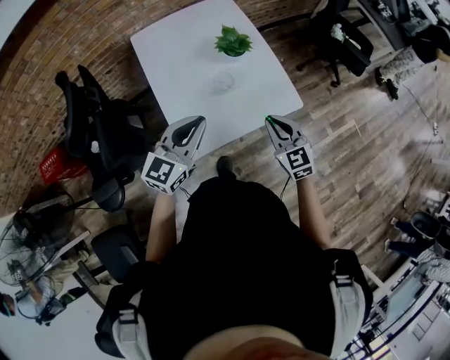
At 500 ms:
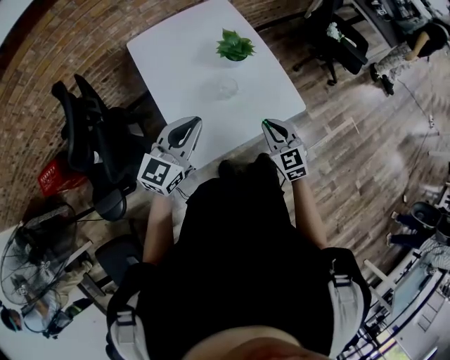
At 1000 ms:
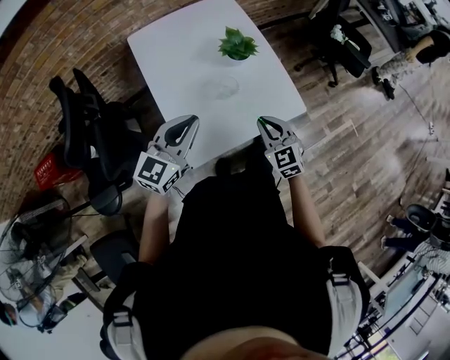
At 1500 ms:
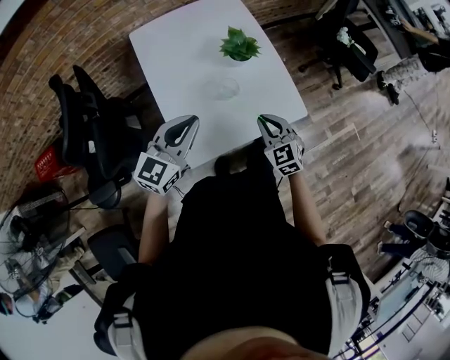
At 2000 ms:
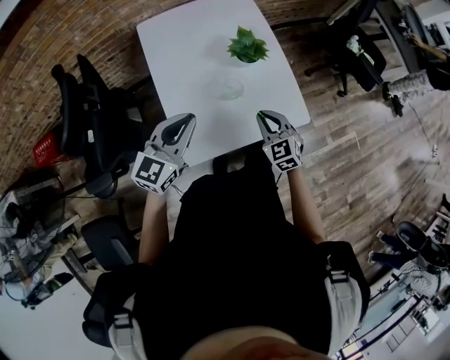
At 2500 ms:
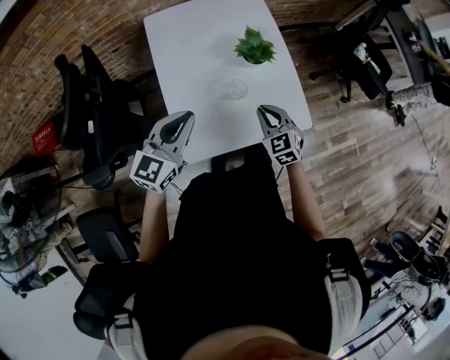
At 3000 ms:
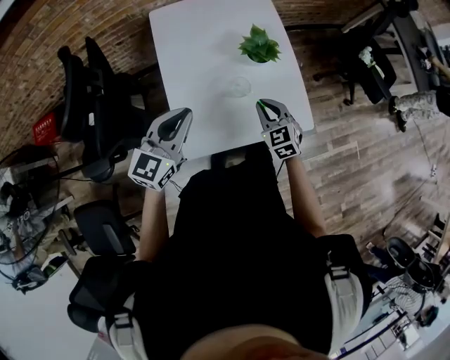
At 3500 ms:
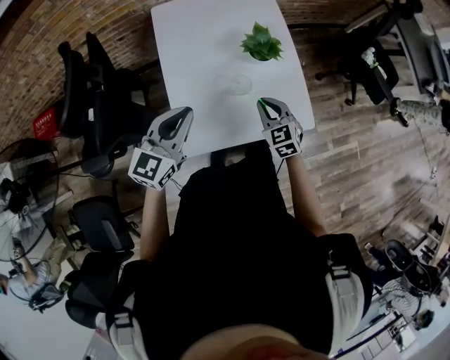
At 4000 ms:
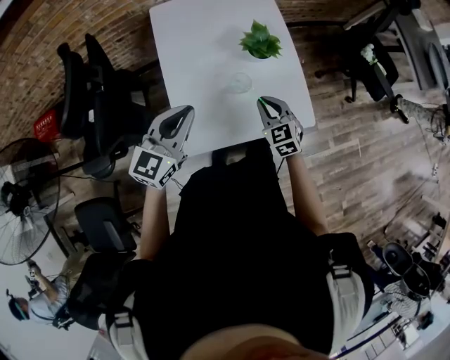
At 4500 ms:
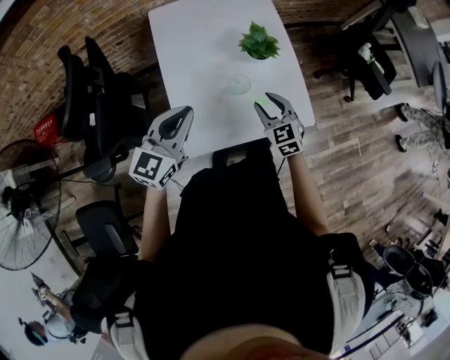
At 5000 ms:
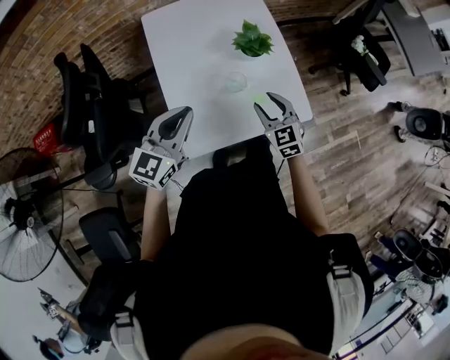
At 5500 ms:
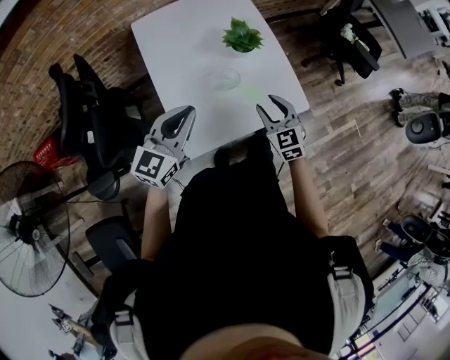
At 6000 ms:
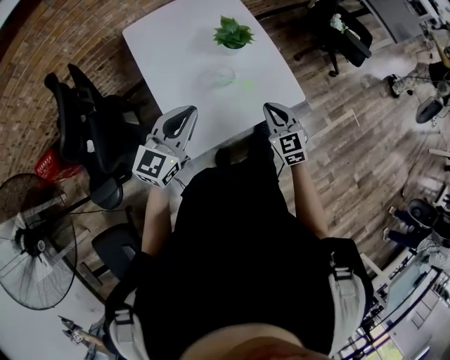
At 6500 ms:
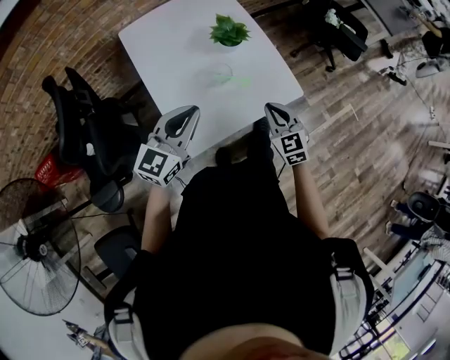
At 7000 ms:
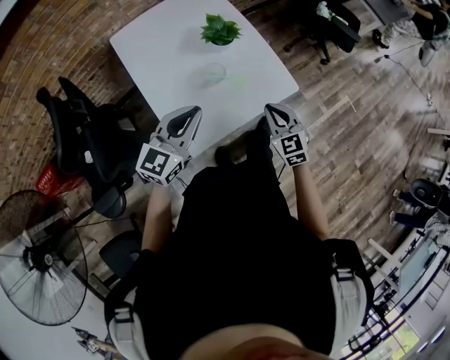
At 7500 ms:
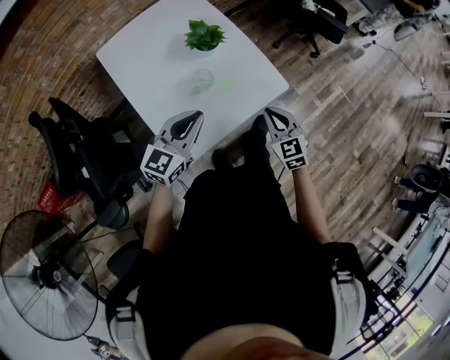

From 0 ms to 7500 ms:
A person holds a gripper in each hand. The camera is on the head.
From 0 ms to 2000 ms: The right gripper travels forward and downward by roughly 10 cm. The left gripper is displaced forward and to the left by roughly 10 cm.
From 2000 ms to 4000 ms: There are only small adjustments of the grippers.
From 4000 ms to 5500 ms: The right gripper moves about 5 cm, and opens up.
From 5500 ms to 7500 ms: The left gripper travels to the right by approximately 5 cm. The right gripper goes some 10 cm to the right and backward, and closes.

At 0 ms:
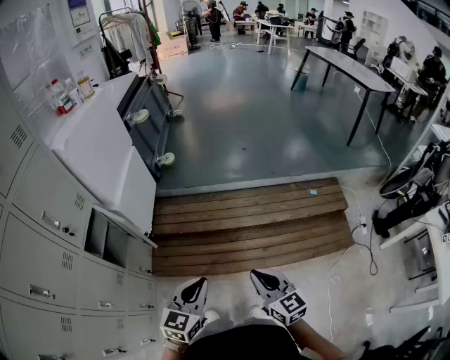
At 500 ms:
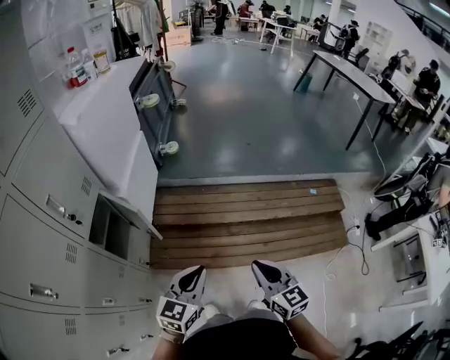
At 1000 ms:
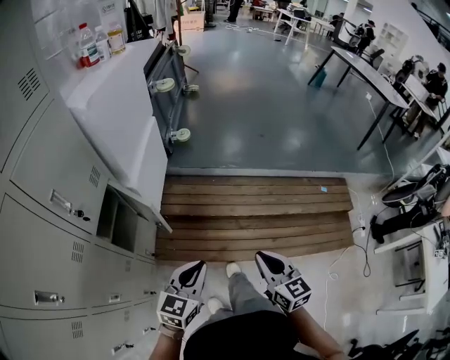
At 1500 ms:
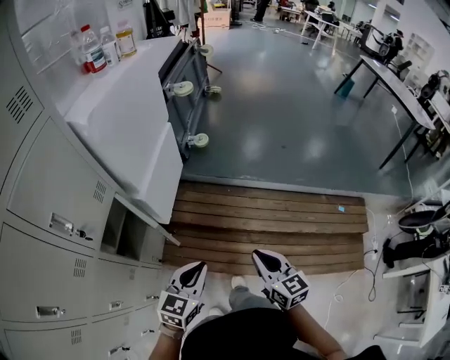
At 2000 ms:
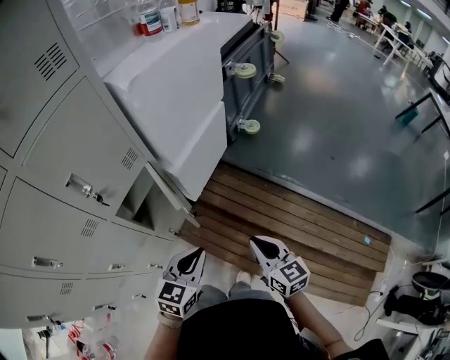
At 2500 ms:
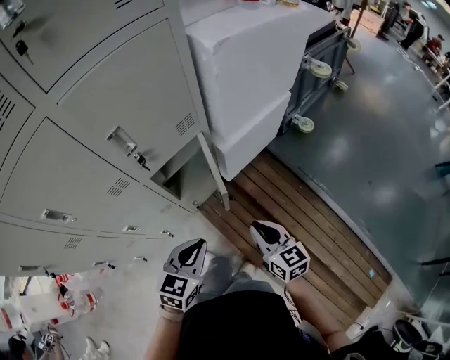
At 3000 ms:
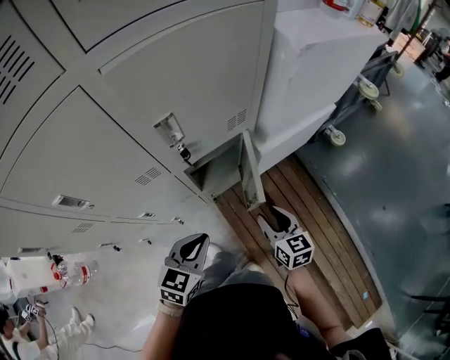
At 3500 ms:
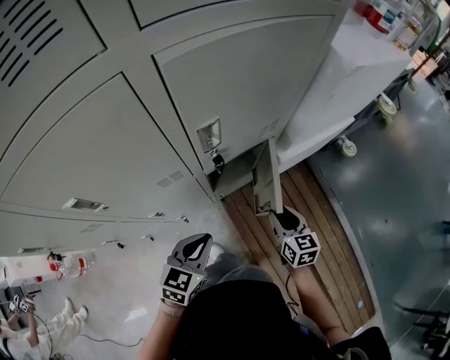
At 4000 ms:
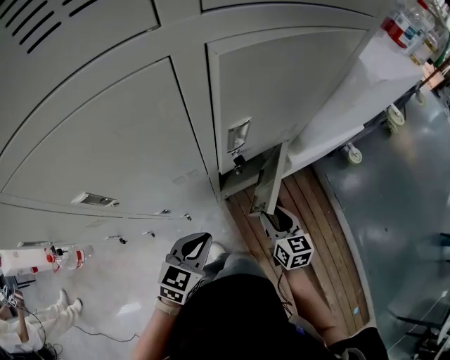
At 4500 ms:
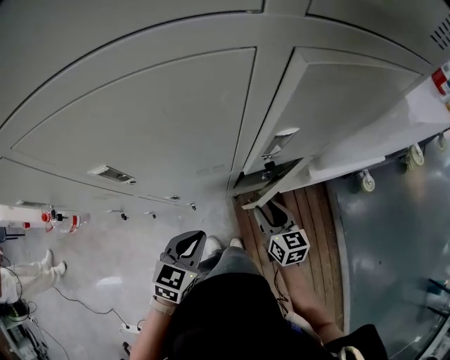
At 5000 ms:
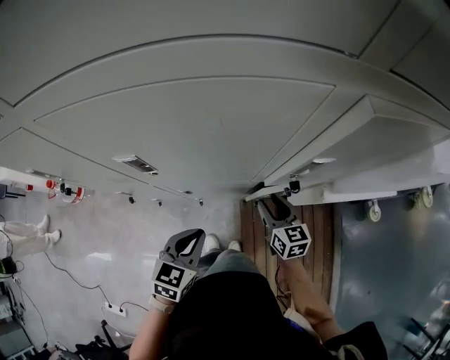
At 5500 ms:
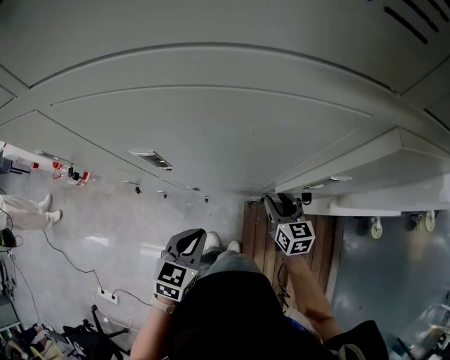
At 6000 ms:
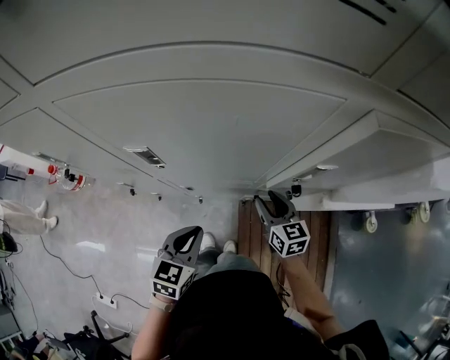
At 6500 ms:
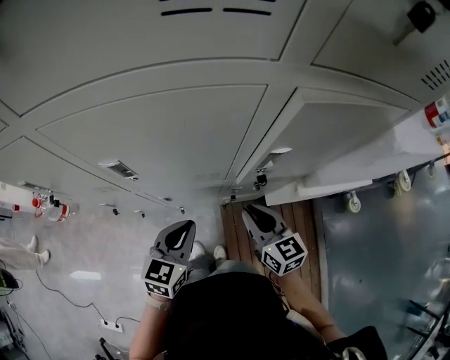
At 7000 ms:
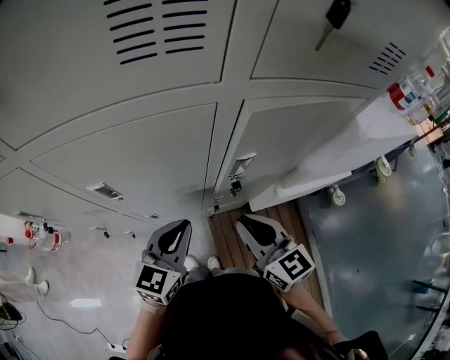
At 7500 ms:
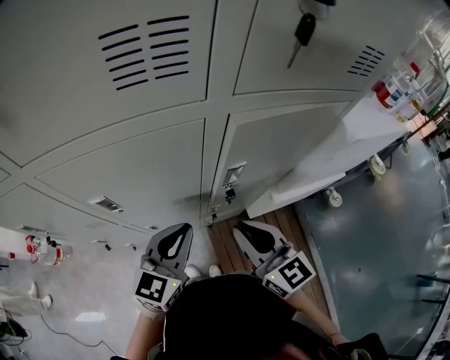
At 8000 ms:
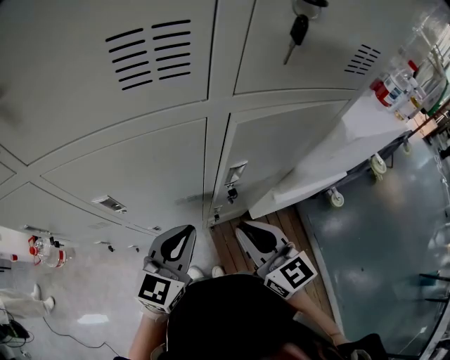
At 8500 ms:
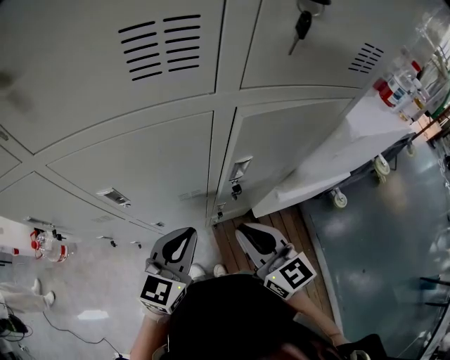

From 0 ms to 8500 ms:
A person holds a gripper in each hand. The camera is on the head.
From 0 ms to 2000 ms: The right gripper moves roughly 35 cm, and changes its angle by about 30 degrees. Meanwhile the left gripper shifts by approximately 30 cm, and swivels about 30 degrees.
From 2000 ms to 4000 ms: The right gripper ends up roughly 35 cm from where it was, changes its angle by approximately 30 degrees, and opens, while the left gripper changes place by approximately 30 cm, and rotates roughly 30 degrees.
From 4000 ms to 6500 ms: The right gripper shifts by about 15 cm, rotates some 30 degrees, and closes up, while the left gripper moves roughly 10 cm, and turns by roughly 30 degrees.
From 6500 ms to 8500 ms: Both grippers travel together upward, roughly 15 cm.

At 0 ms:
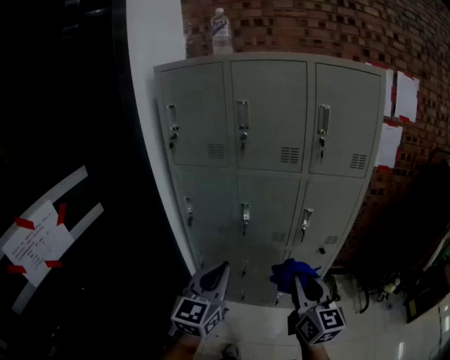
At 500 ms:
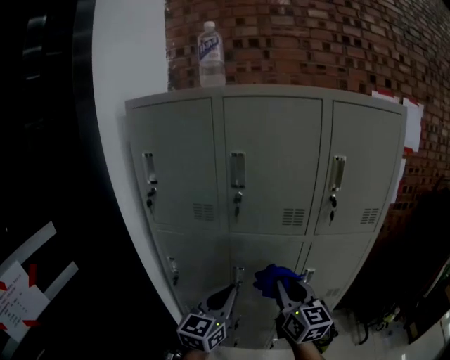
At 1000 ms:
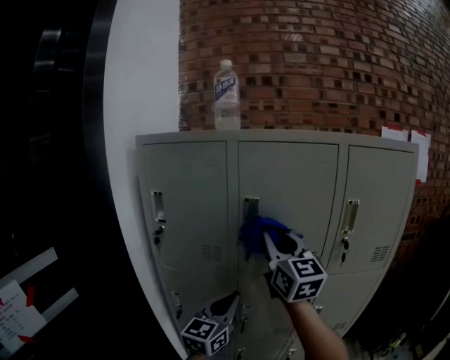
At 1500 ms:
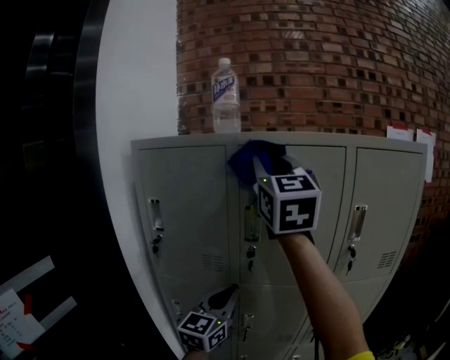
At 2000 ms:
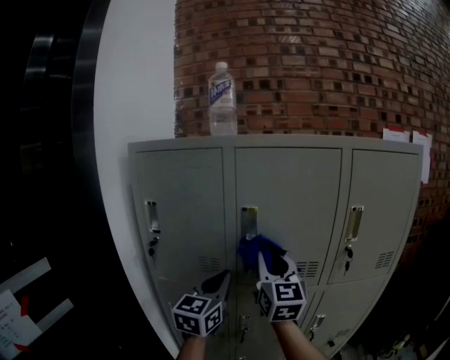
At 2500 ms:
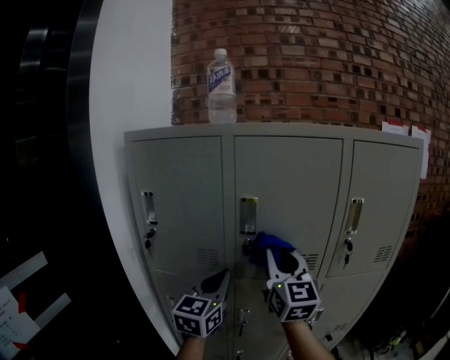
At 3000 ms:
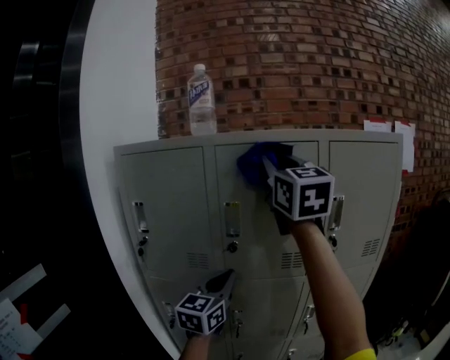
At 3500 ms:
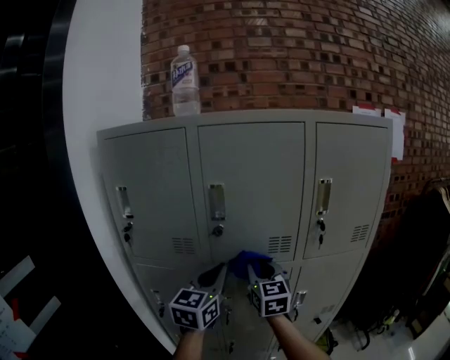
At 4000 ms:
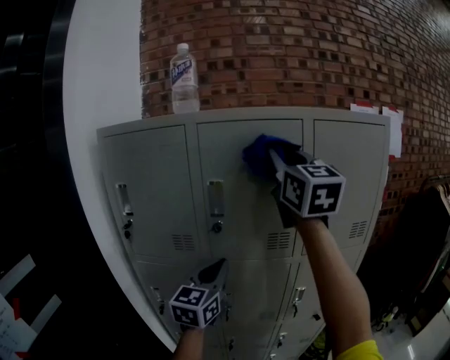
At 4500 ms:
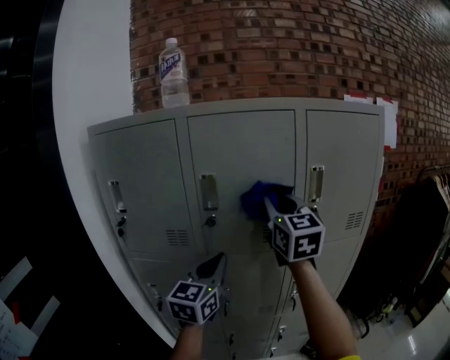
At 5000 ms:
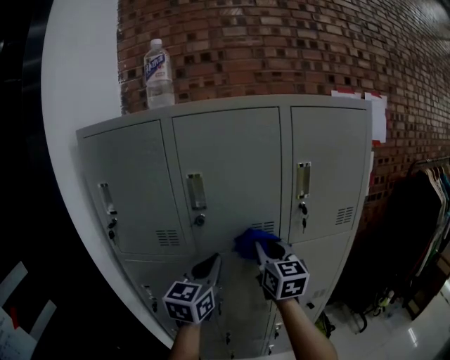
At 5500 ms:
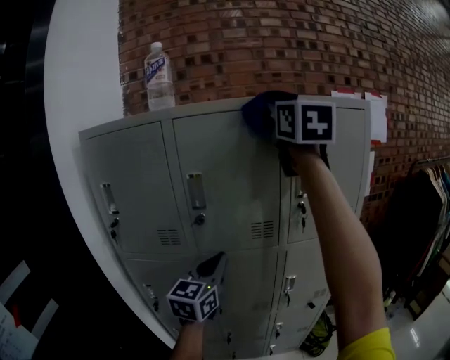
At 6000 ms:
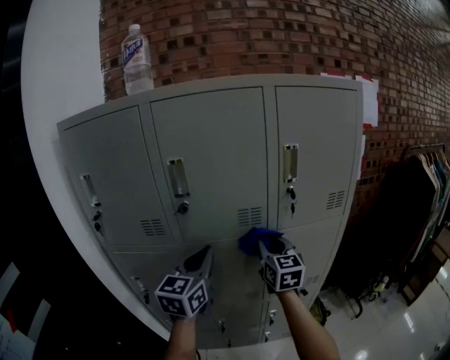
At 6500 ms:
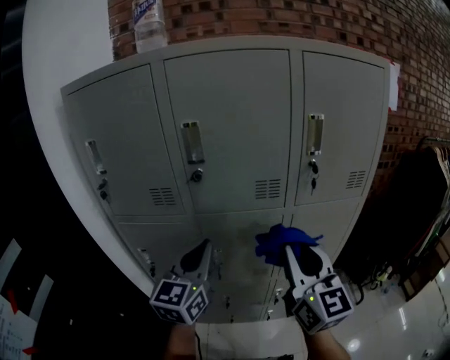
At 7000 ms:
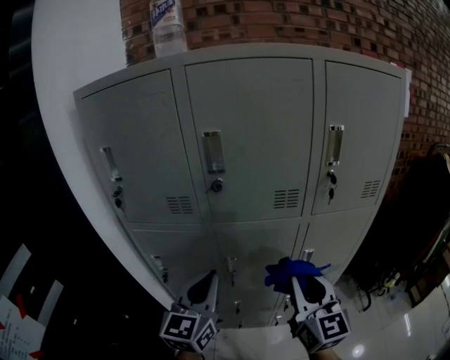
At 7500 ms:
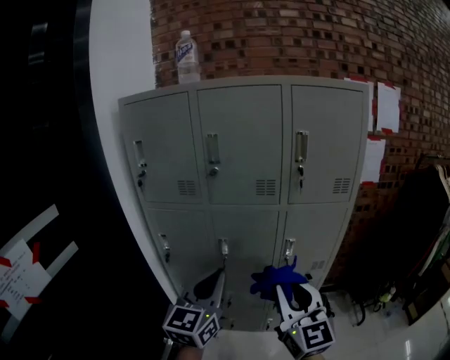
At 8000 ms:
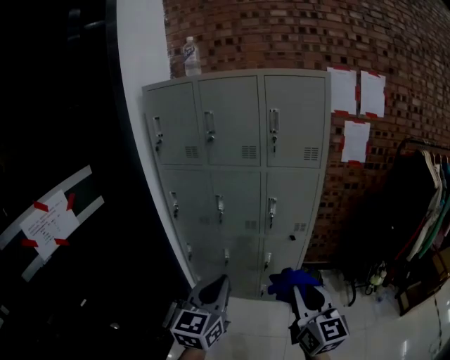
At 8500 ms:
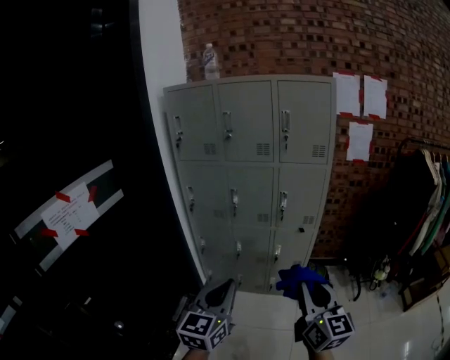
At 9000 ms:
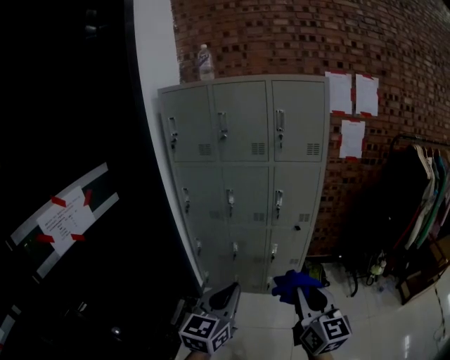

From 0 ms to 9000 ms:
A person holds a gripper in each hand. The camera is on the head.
From 0 ms to 2000 ms: The grippers both shift forward and upward by roughly 40 cm.
From 2000 ms to 4500 ms: The left gripper goes about 5 cm to the right. The right gripper swings up and down, about 35 cm each way, with 3 reversals.
From 4500 ms to 7000 ms: The left gripper heads backward and downward, covering roughly 10 cm. The right gripper goes up and down, some 40 cm each way, reversing 4 times.
From 7000 ms to 9000 ms: The pair of grippers is taken backward, roughly 50 cm.

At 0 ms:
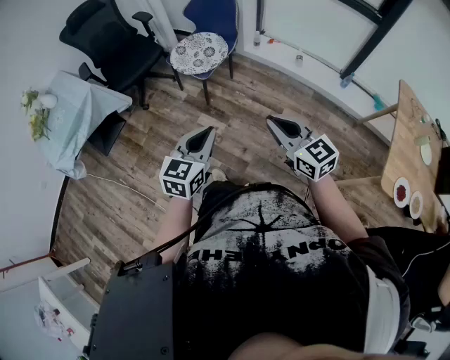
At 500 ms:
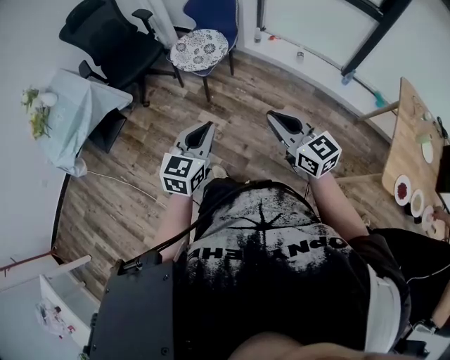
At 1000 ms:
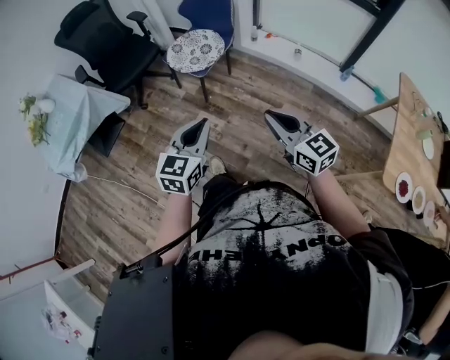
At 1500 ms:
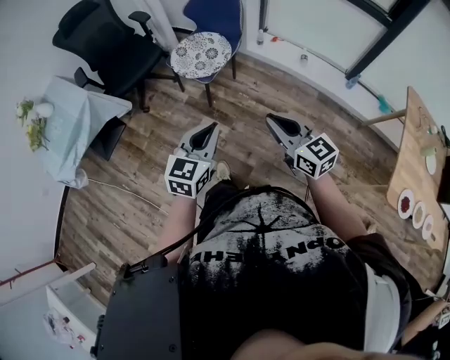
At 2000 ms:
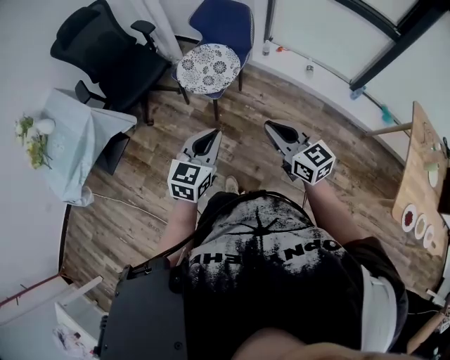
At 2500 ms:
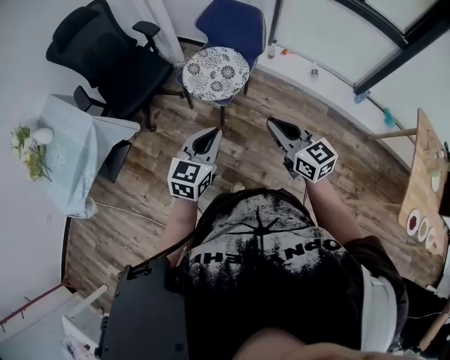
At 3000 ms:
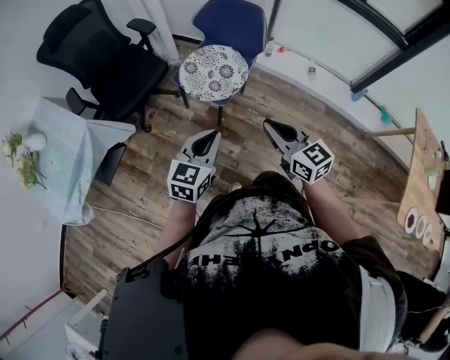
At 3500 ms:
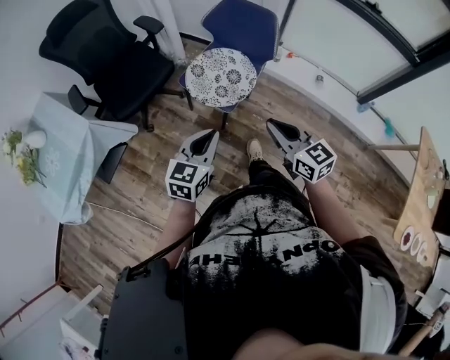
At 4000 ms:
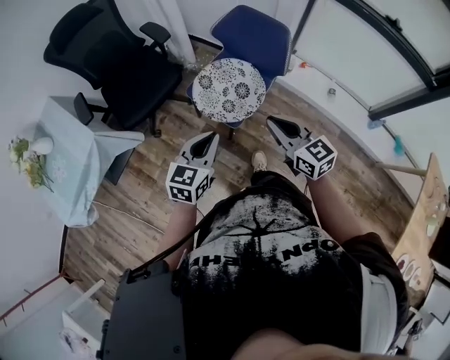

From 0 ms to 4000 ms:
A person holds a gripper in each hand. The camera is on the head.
From 0 ms to 2000 ms: The grippers both shift forward by approximately 20 cm.
From 2000 ms to 4000 ms: The two grippers go approximately 25 cm forward.
